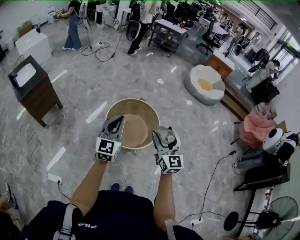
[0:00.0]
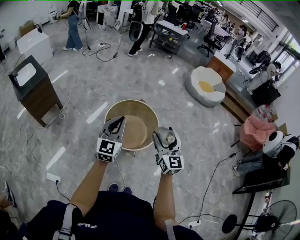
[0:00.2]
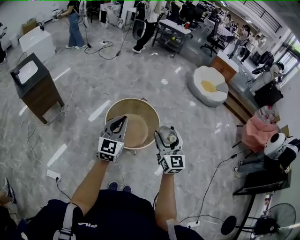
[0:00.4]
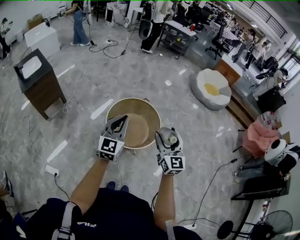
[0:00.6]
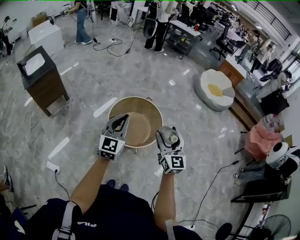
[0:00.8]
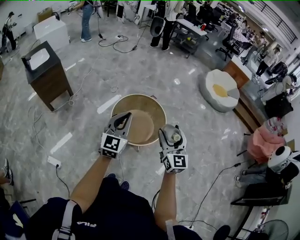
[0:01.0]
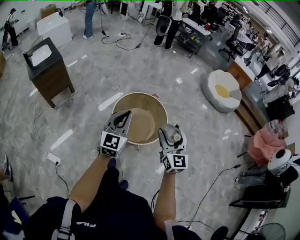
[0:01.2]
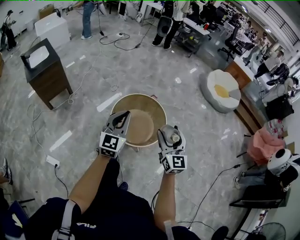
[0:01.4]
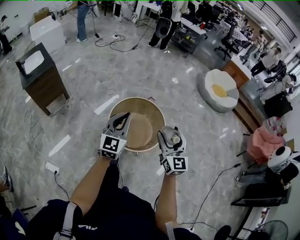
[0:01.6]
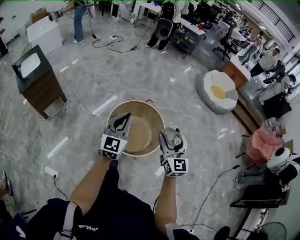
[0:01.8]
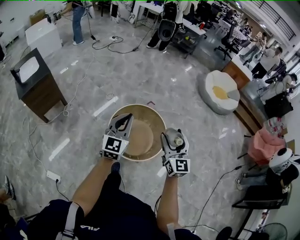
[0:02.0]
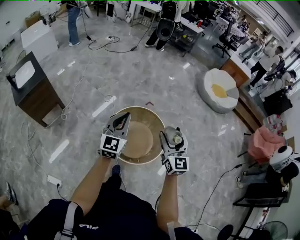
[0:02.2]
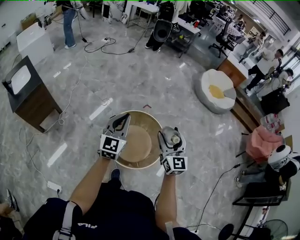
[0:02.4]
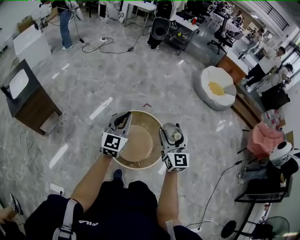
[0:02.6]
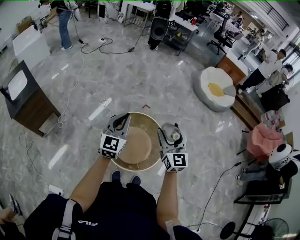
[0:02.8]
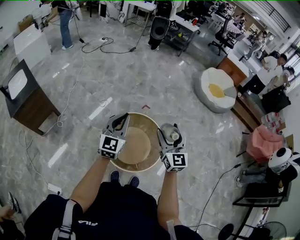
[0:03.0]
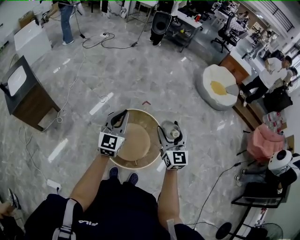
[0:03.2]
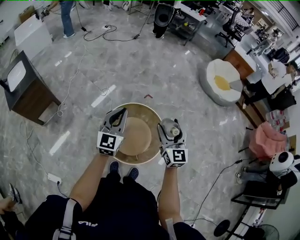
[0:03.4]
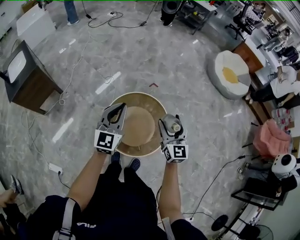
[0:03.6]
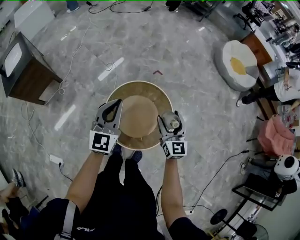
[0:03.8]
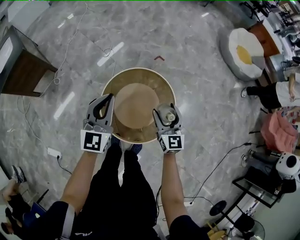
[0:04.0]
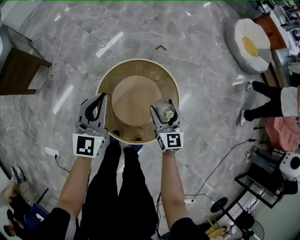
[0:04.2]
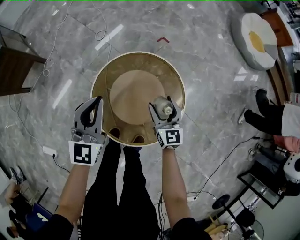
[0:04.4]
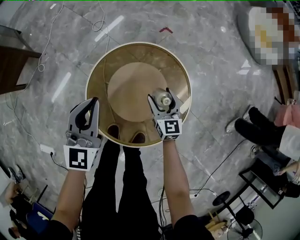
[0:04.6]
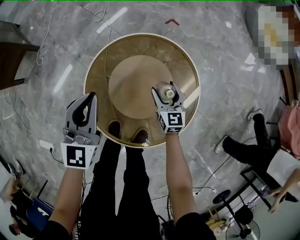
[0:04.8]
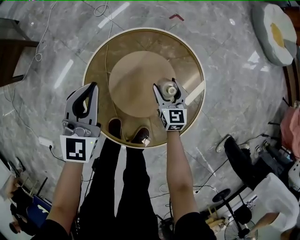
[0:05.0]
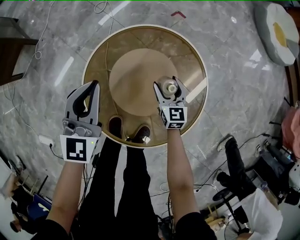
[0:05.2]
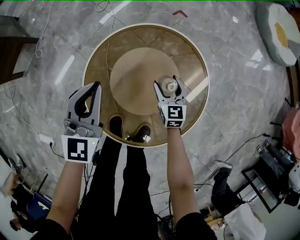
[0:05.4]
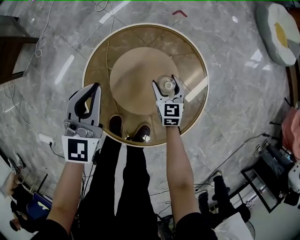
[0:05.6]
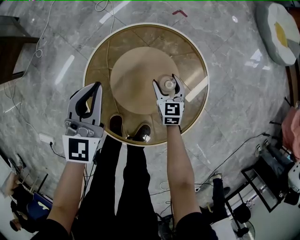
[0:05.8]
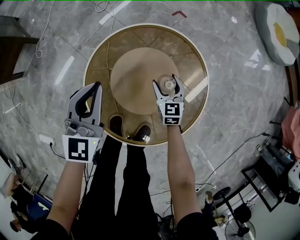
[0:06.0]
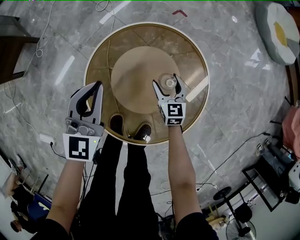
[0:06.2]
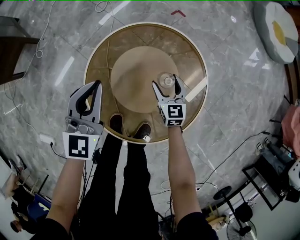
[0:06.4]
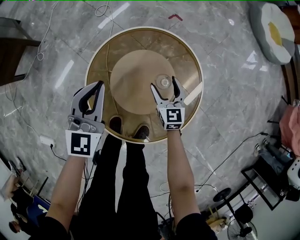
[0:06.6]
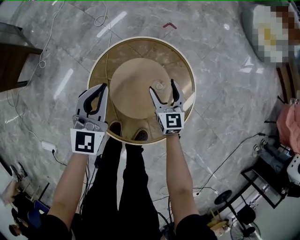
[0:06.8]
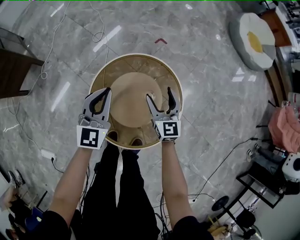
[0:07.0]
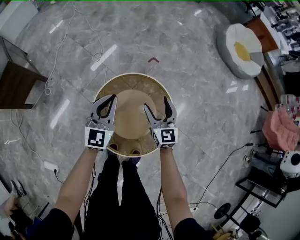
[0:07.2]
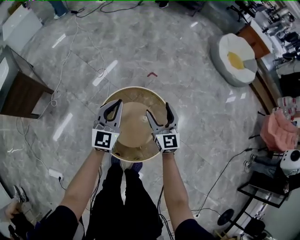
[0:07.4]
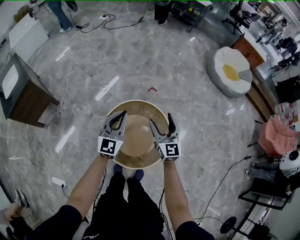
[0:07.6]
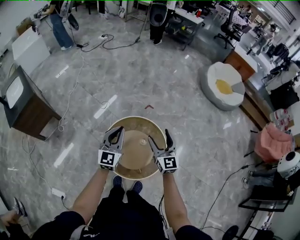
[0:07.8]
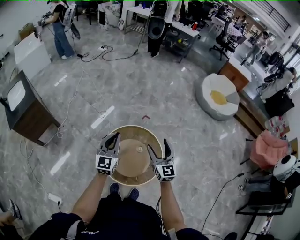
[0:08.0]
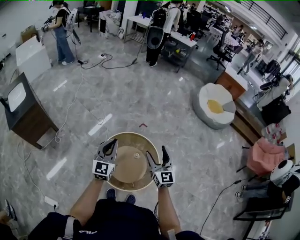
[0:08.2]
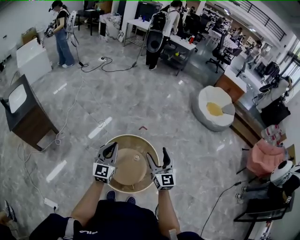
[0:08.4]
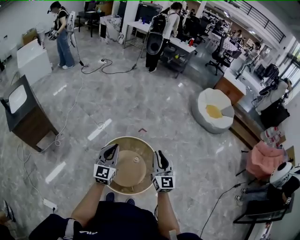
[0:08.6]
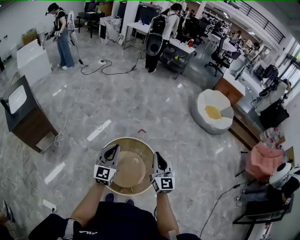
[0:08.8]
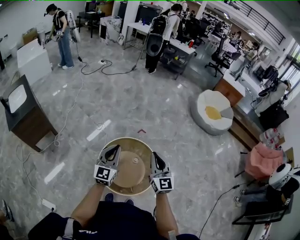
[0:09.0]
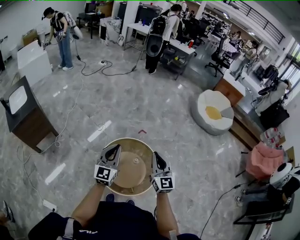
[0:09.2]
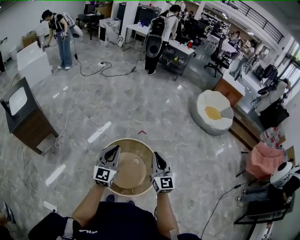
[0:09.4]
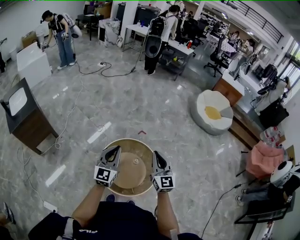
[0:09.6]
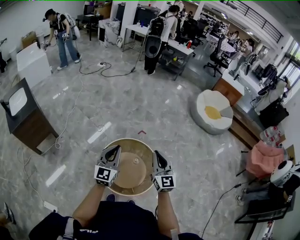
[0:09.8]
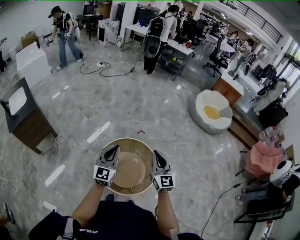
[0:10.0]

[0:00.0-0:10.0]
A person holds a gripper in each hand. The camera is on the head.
0.0 to 1.4 s: The left gripper moves roughly 5 cm. Meanwhile the right gripper travels forward by some 5 cm.
1.4 to 2.8 s: The two grippers go about 25 cm forward.
2.8 to 4.2 s: The right gripper goes some 35 cm downward. Meanwhile the left gripper is displaced downward by approximately 25 cm.
4.2 to 5.8 s: The grippers both shift downward by roughly 30 cm. The right gripper turns by approximately 20 degrees.
5.8 to 7.2 s: The right gripper goes roughly 35 cm upward, and swivels some 20 degrees. Meanwhile the left gripper is displaced upward by approximately 20 cm.
7.2 to 8.6 s: The grippers both shift upward and backward by roughly 30 cm. The right gripper closes.
8.6 to 10.0 s: The grippers make only small movements.

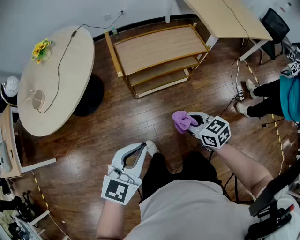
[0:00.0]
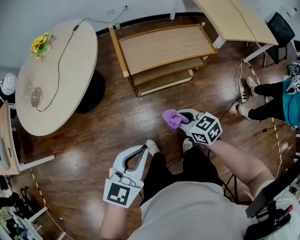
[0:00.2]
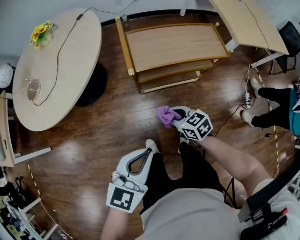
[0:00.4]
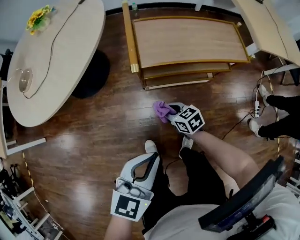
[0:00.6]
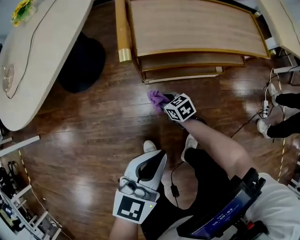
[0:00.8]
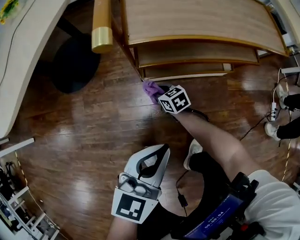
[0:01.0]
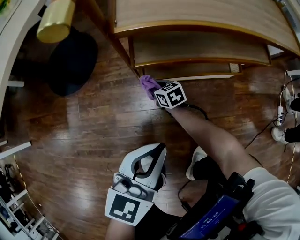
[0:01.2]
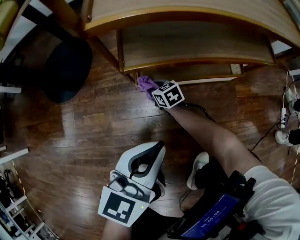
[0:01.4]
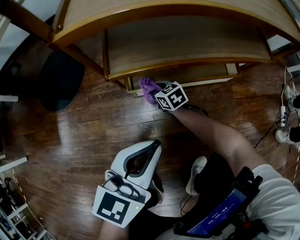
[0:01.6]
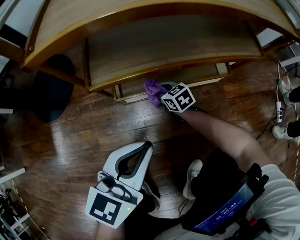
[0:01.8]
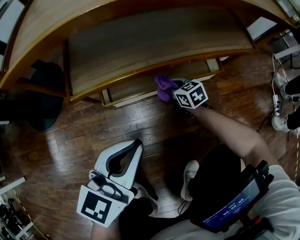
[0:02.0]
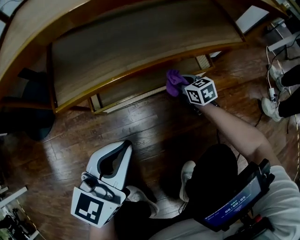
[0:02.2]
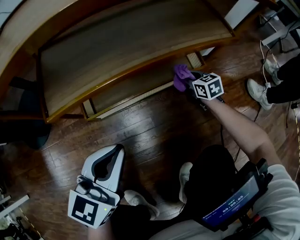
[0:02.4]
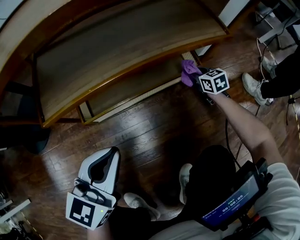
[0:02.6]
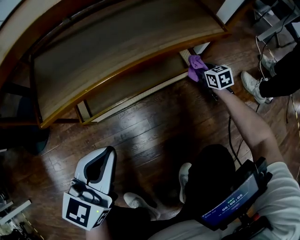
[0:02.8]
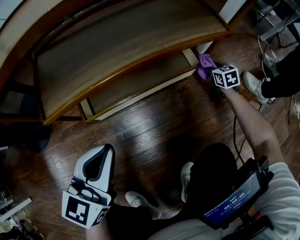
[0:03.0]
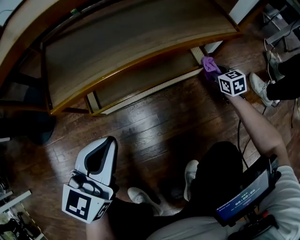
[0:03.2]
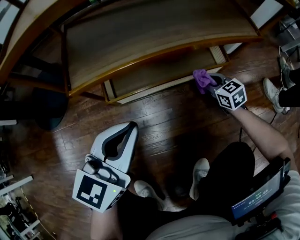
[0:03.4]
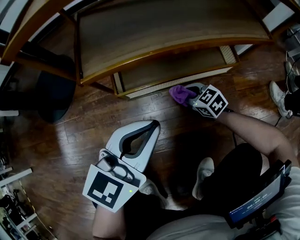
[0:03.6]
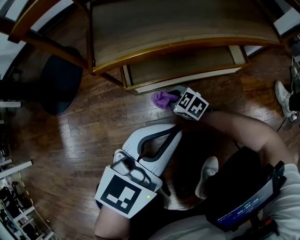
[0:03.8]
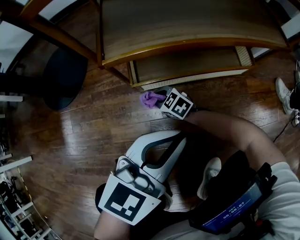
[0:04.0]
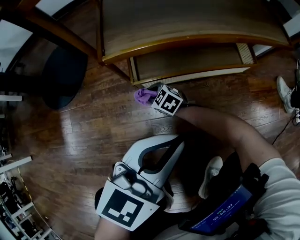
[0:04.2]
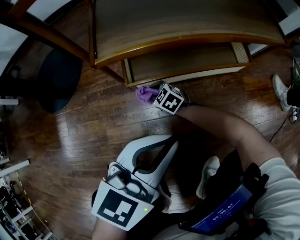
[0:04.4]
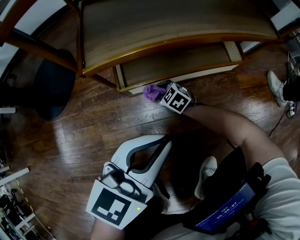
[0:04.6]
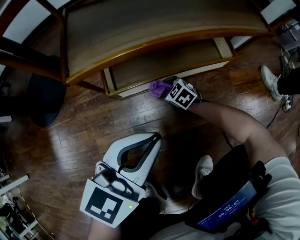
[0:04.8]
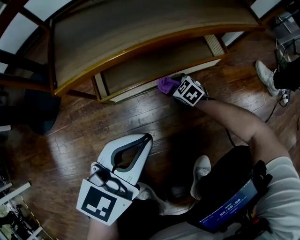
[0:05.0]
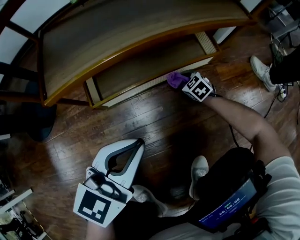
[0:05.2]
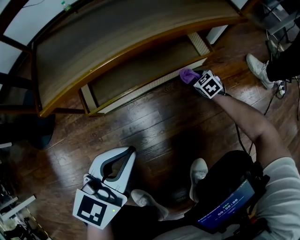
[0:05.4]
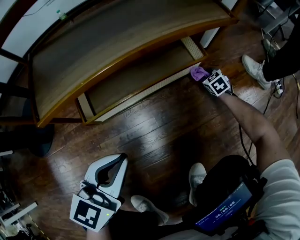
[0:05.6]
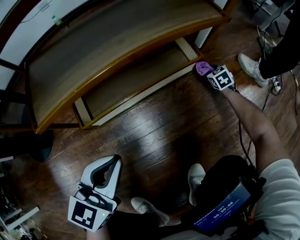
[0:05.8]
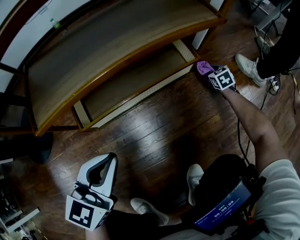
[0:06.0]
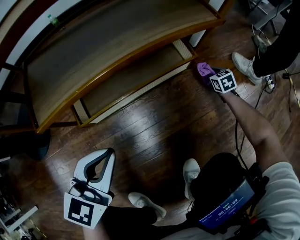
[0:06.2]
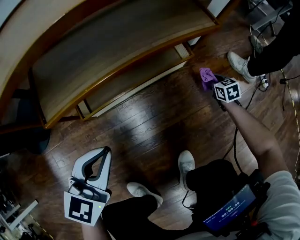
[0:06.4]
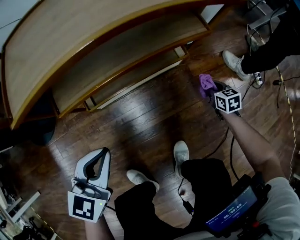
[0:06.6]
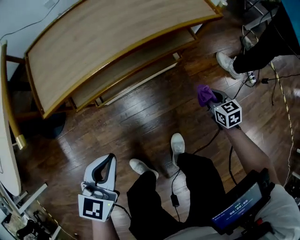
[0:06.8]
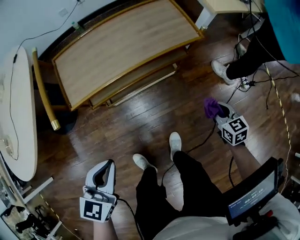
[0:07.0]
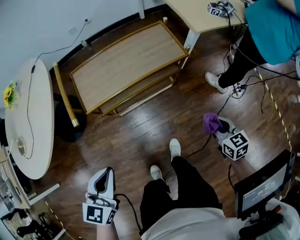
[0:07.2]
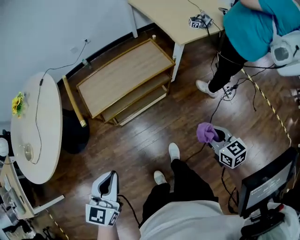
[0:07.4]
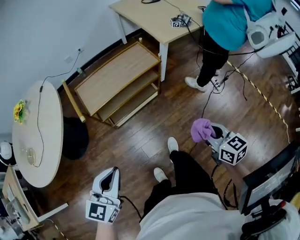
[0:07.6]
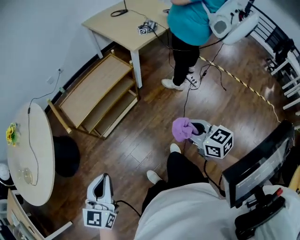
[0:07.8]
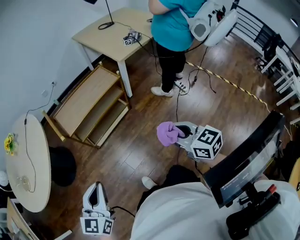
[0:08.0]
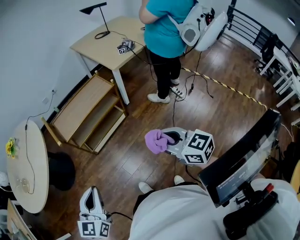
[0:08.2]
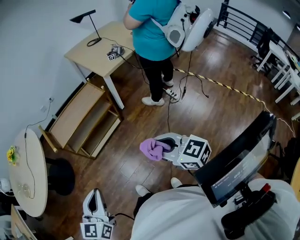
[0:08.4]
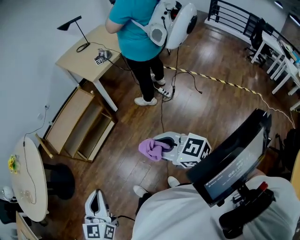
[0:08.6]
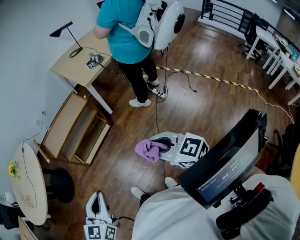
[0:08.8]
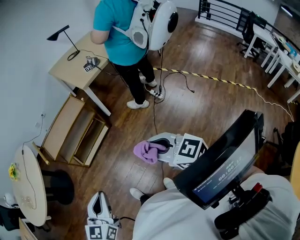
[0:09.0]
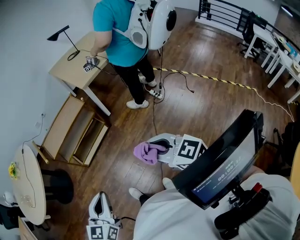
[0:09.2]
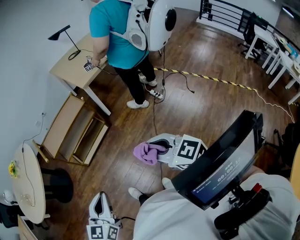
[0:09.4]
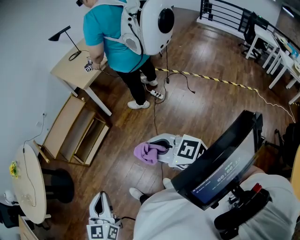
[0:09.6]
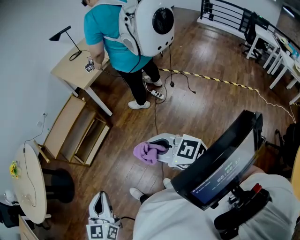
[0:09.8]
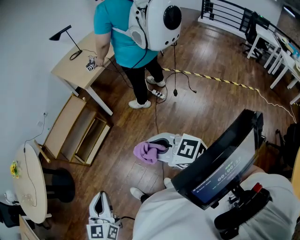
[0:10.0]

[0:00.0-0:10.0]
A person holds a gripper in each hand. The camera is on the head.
0.0 to 1.4 s: The left gripper moves downward and forward, about 50 cm. Meanwhile the right gripper goes approximately 70 cm downward and forward.
1.4 to 2.8 s: The left gripper moves about 15 cm. The right gripper changes place by approximately 50 cm, and changes its angle by roughly 30 degrees.
2.8 to 4.2 s: The left gripper moves some 10 cm, while the right gripper shifts by approximately 60 cm, and turns by roughly 50 degrees.
4.2 to 5.8 s: The right gripper changes place by roughly 60 cm, and rotates roughly 50 degrees. Meanwhile the left gripper shifts by roughly 5 cm.
5.8 to 7.2 s: The left gripper goes roughly 40 cm upward. The right gripper moves upward and backward, roughly 70 cm, and rotates about 30 degrees.
7.2 to 8.6 s: The left gripper heads backward, to the right and upward, covering about 40 cm. The right gripper moves backward and upward, roughly 50 cm, and turns by about 30 degrees.
8.6 to 10.0 s: The right gripper shifts approximately 5 cm backward and to the right; the left gripper shifts roughly 10 cm to the right and backward.

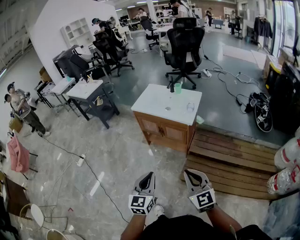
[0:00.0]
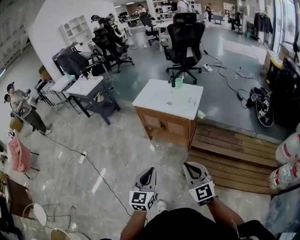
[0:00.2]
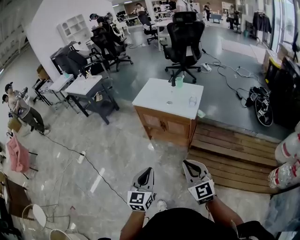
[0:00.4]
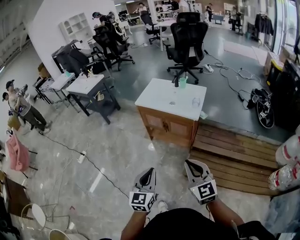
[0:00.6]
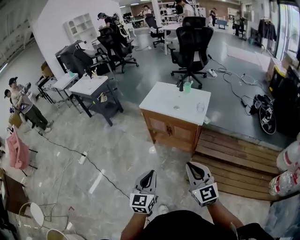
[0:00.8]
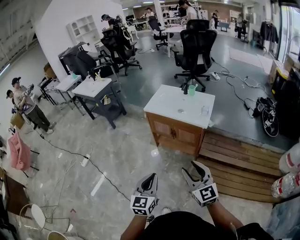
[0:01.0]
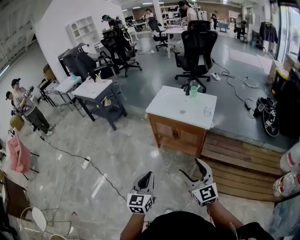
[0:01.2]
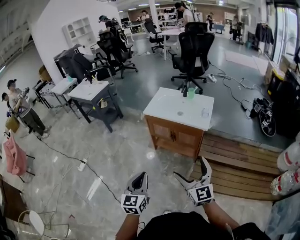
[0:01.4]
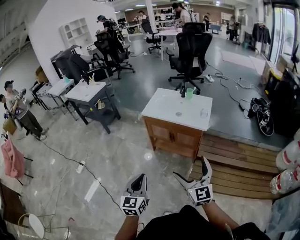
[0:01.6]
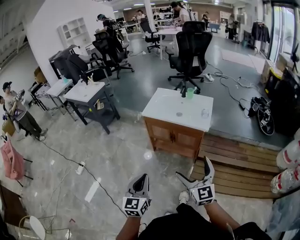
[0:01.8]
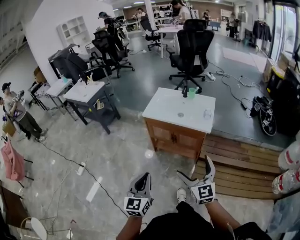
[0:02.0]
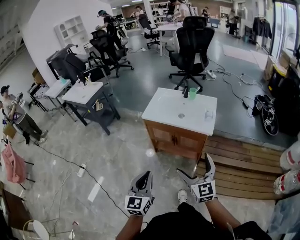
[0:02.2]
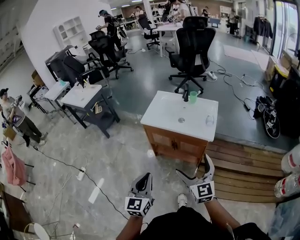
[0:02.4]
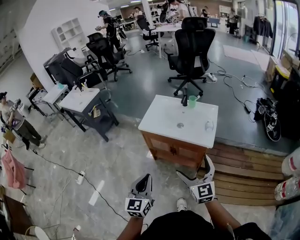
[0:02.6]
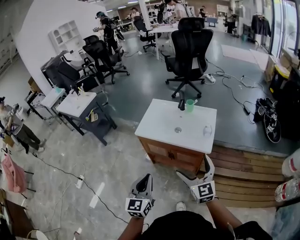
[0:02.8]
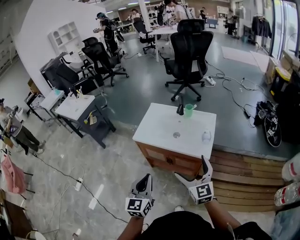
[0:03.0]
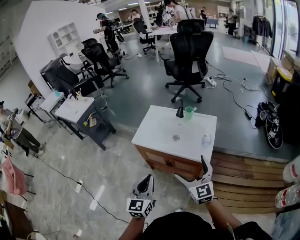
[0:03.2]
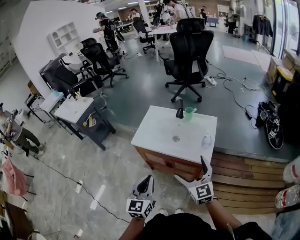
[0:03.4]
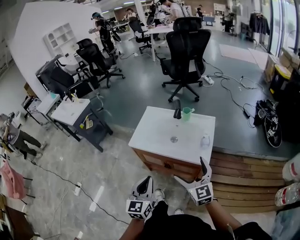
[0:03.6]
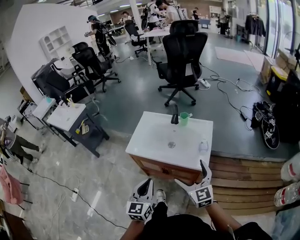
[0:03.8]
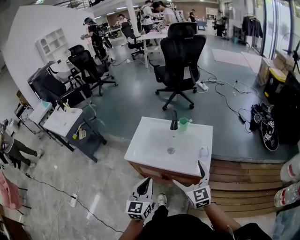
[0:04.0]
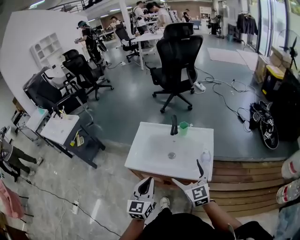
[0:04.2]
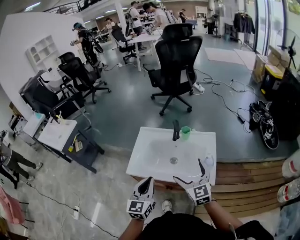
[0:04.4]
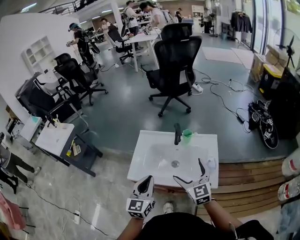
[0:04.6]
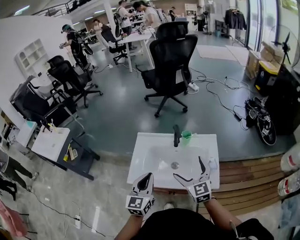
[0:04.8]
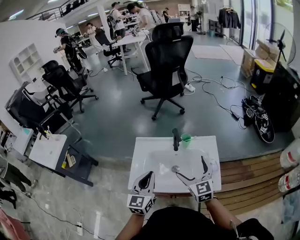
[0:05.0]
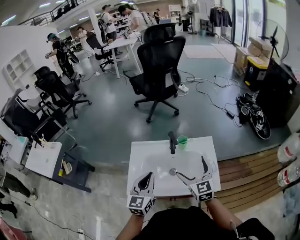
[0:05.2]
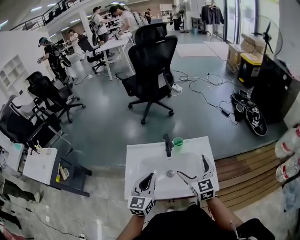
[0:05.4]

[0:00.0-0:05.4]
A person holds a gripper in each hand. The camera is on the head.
0.0 to 1.4 s: Both grippers travel together to the left and forward, some 20 cm. The right gripper opens its fingers.
1.4 to 2.8 s: The two grippers go about 30 cm forward.
2.8 to 4.0 s: Both grippers travel together forward, approximately 20 cm.
4.0 to 5.4 s: The grippers both shift forward by some 30 cm. The right gripper changes its angle by roughly 20 degrees. The left gripper rotates some 20 degrees.
